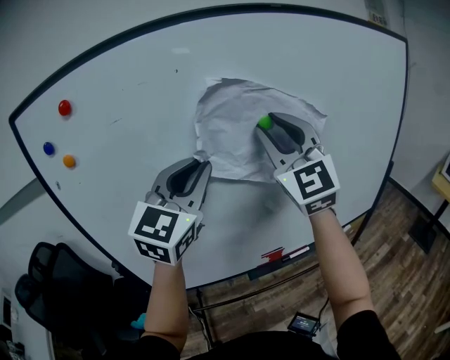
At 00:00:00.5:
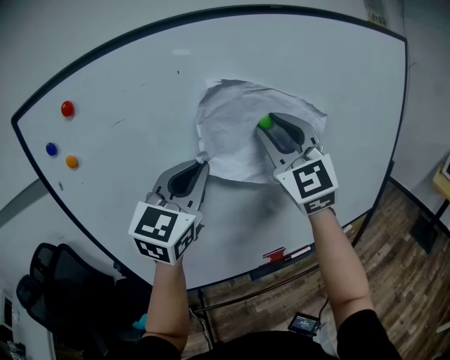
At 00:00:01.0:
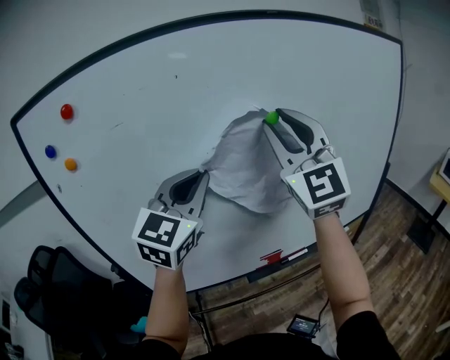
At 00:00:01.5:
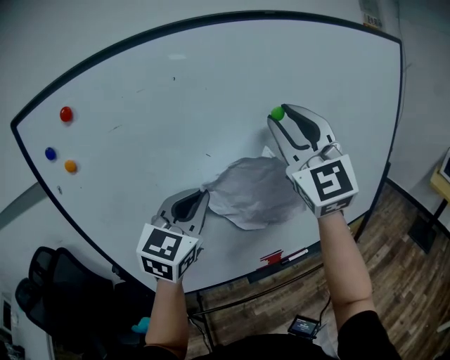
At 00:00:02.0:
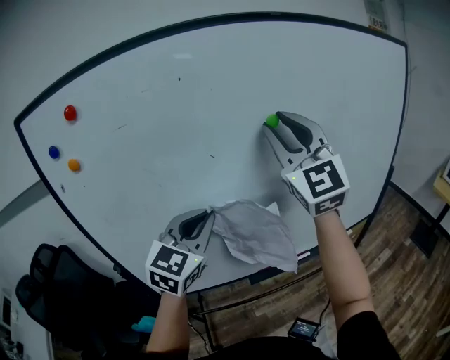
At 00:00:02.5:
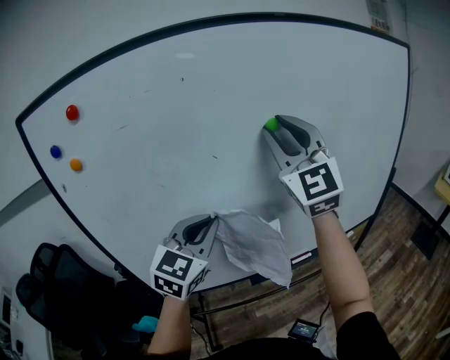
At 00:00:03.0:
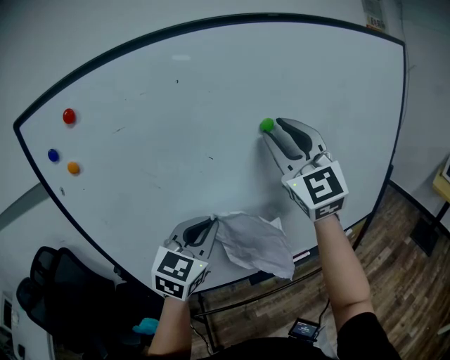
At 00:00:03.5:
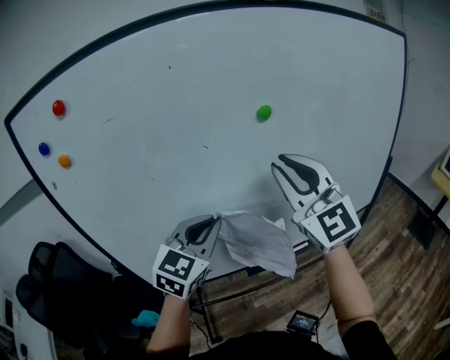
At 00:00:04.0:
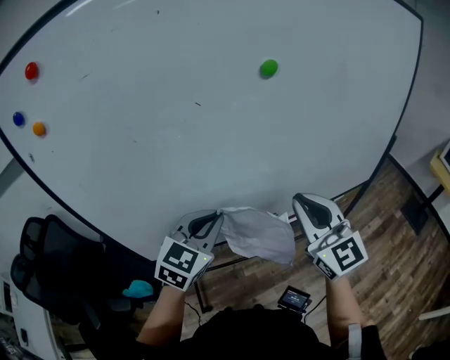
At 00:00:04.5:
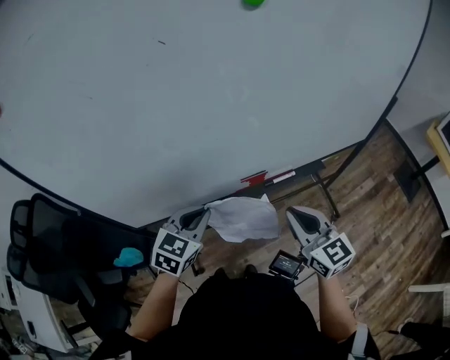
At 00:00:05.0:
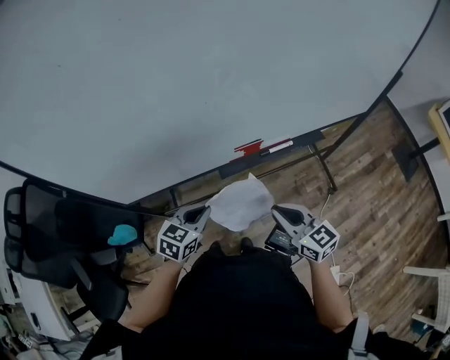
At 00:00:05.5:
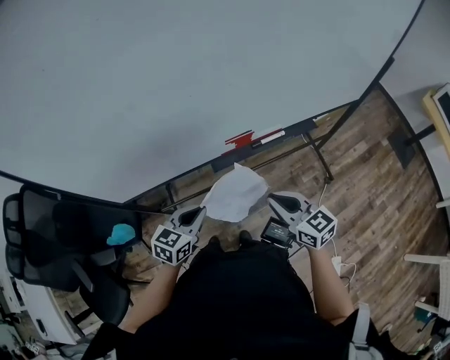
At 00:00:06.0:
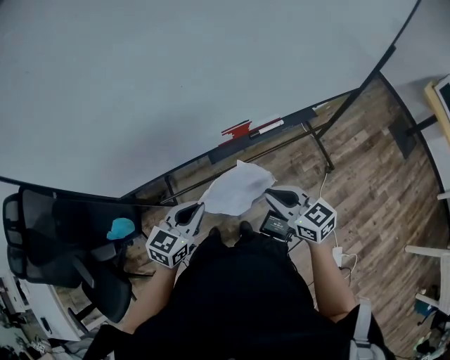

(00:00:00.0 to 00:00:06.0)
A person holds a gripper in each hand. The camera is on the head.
00:00:00.0 - 00:00:02.0: The left gripper is displaced downward by roughly 10 cm.
00:00:02.0 - 00:00:04.0: The right gripper travels downward by about 25 cm, rotates approximately 30 degrees, and closes; the left gripper travels downward by roughly 15 cm.
00:00:04.0 - 00:00:06.0: The grippers both shift downward by roughly 30 cm. The right gripper rotates approximately 40 degrees, while the left gripper rotates roughly 30 degrees.

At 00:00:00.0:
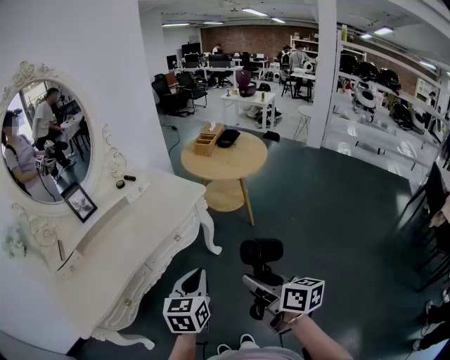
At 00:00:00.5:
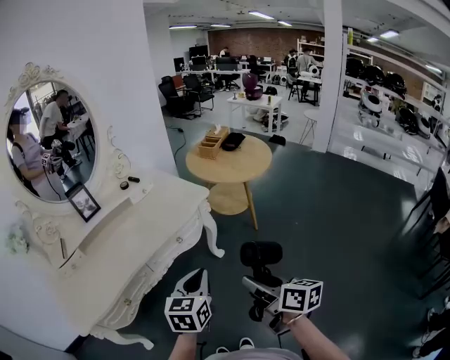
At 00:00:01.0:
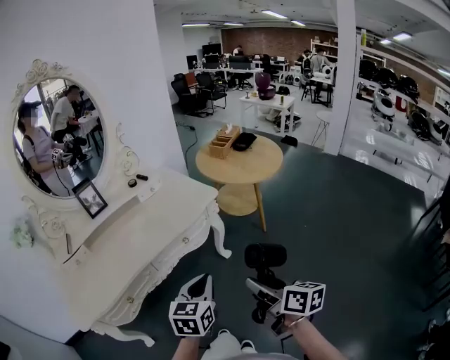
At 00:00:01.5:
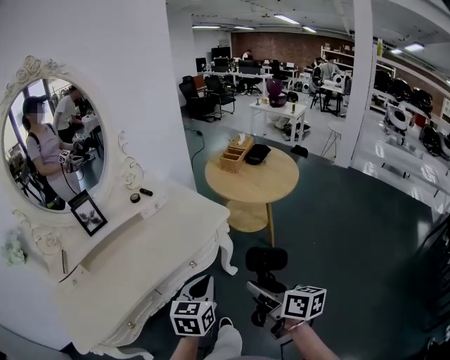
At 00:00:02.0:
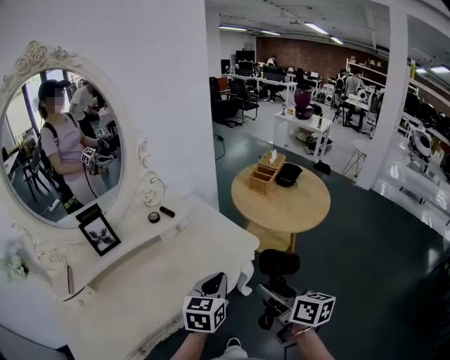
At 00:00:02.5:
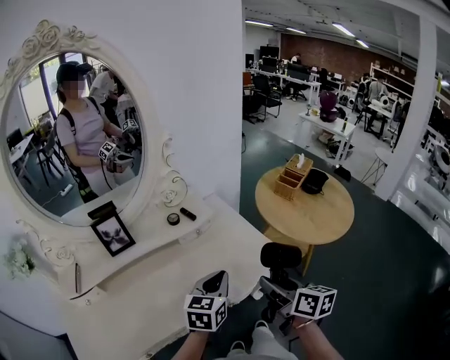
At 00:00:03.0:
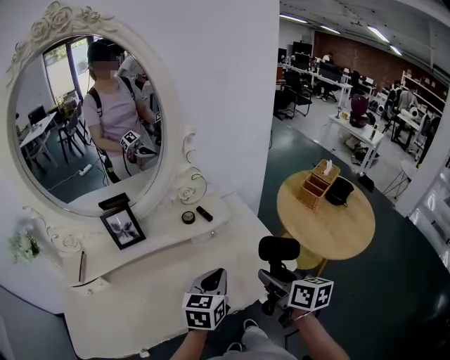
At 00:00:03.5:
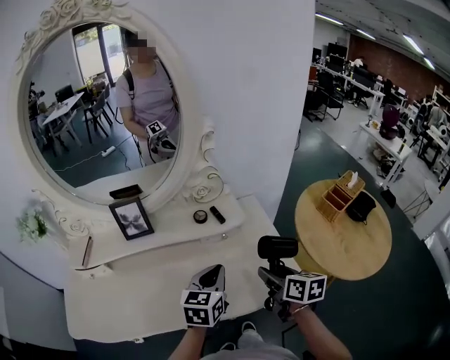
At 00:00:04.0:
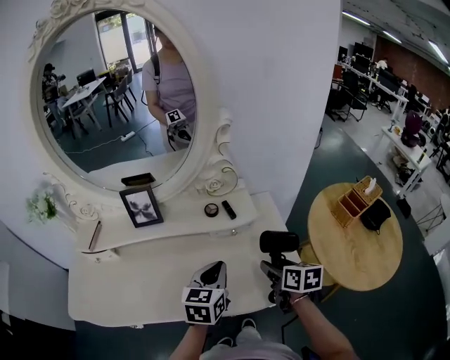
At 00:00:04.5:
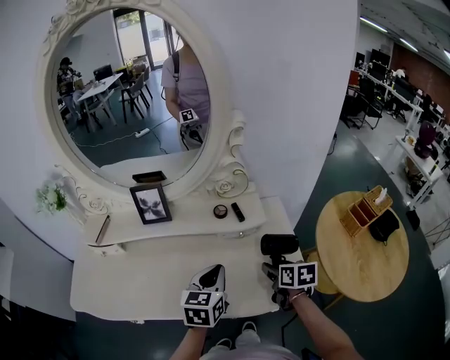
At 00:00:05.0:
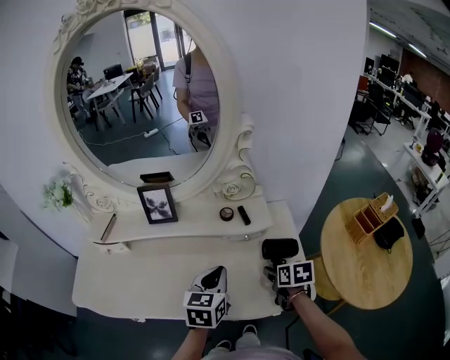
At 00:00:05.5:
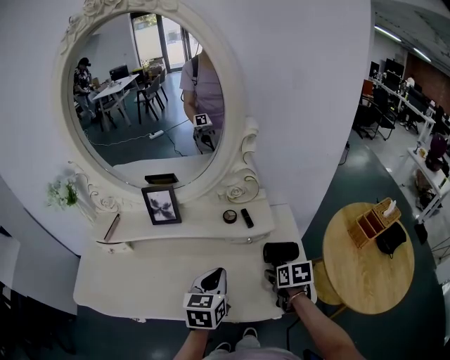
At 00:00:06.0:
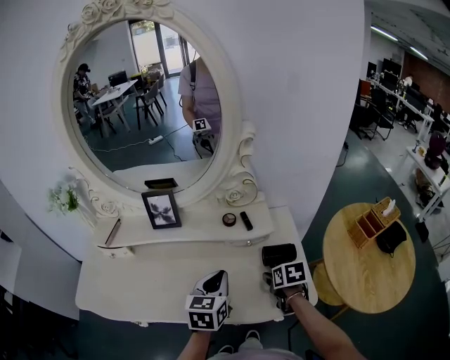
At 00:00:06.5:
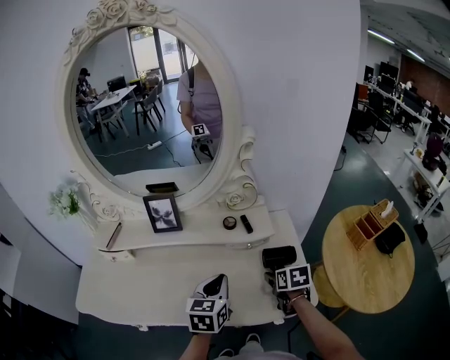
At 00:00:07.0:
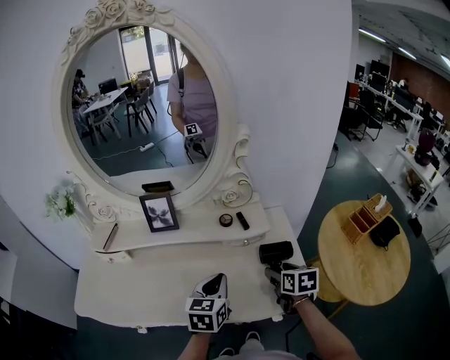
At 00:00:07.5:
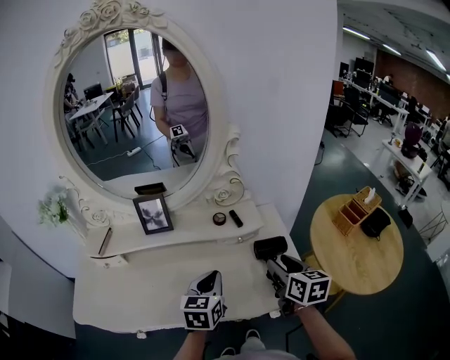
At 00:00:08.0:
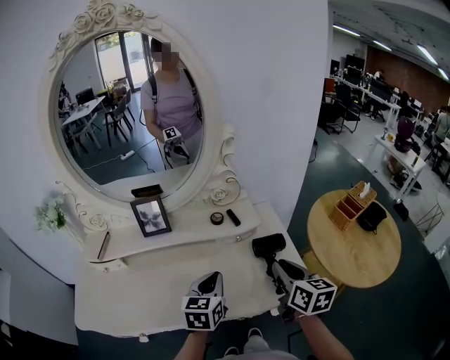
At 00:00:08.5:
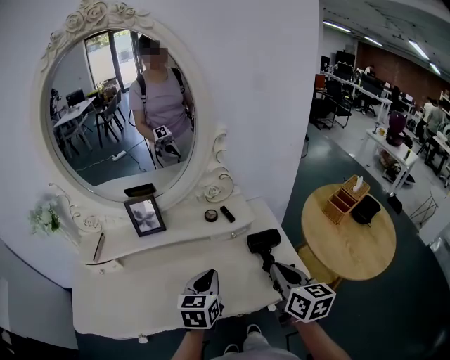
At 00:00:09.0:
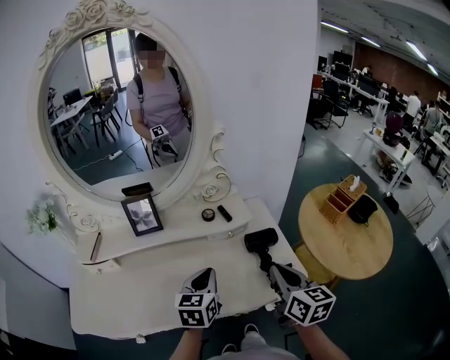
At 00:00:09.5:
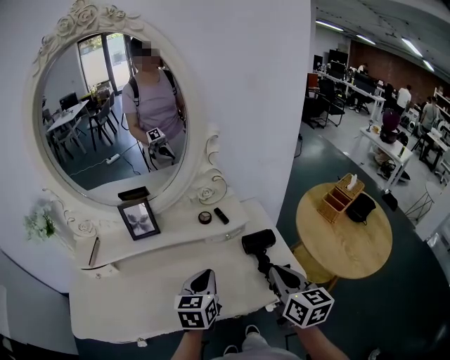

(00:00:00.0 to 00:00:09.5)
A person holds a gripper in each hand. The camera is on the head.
00:00:00.0 - 00:00:02.0: Both grippers travel together forward, about 30 cm.
00:00:02.0 - 00:00:04.0: The left gripper changes place by approximately 20 cm, and changes its angle by roughly 40 degrees; the right gripper shifts by approximately 30 cm, and swivels roughly 40 degrees.
00:00:04.0 - 00:00:05.5: The right gripper shifts approximately 5 cm downward.
00:00:05.5 - 00:00:07.5: The right gripper heads upward, covering roughly 15 cm, and swivels some 30 degrees.
00:00:07.5 - 00:00:09.5: The right gripper is displaced backward by some 5 cm, and closes up.

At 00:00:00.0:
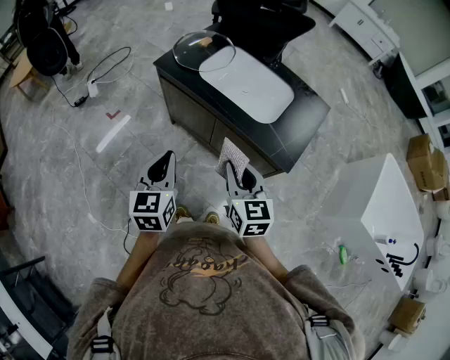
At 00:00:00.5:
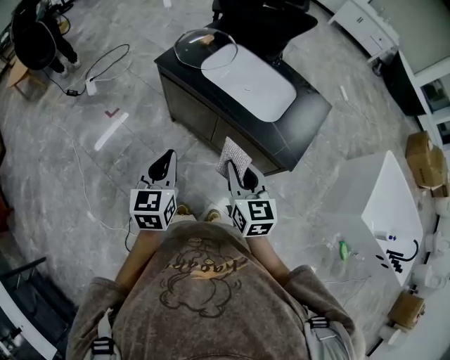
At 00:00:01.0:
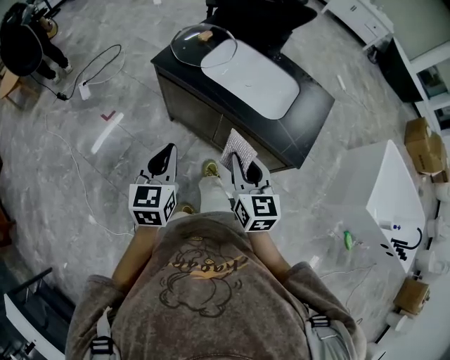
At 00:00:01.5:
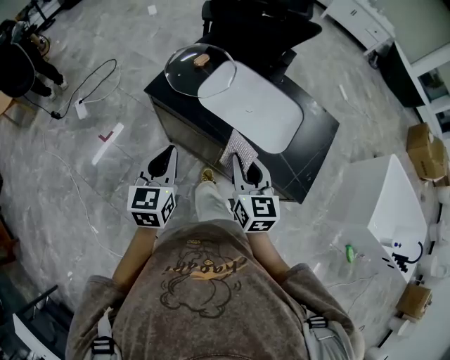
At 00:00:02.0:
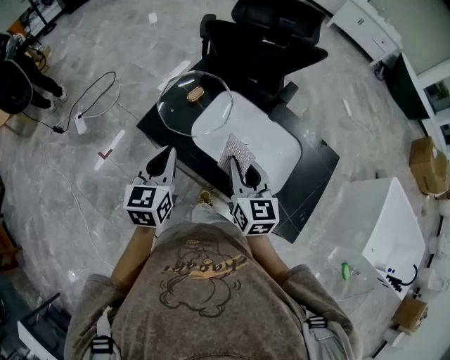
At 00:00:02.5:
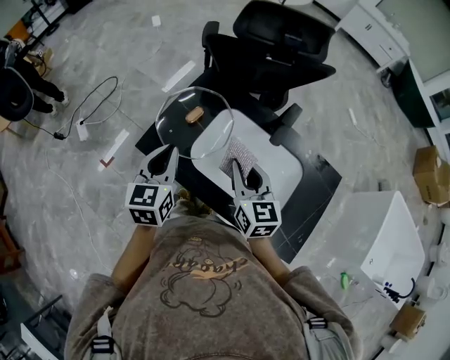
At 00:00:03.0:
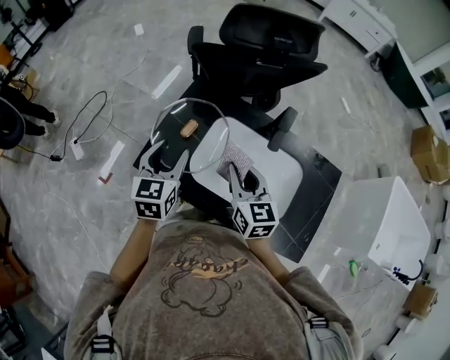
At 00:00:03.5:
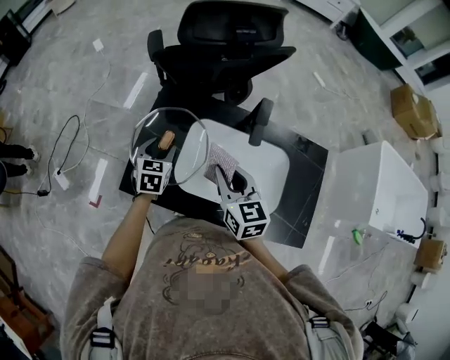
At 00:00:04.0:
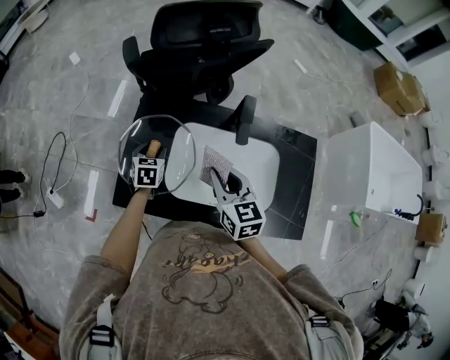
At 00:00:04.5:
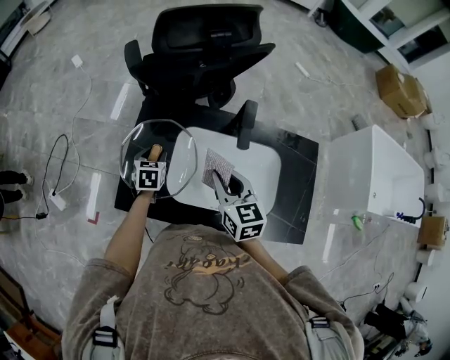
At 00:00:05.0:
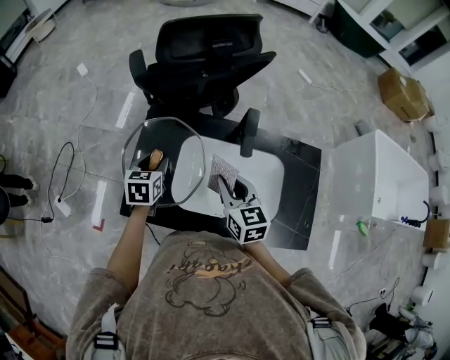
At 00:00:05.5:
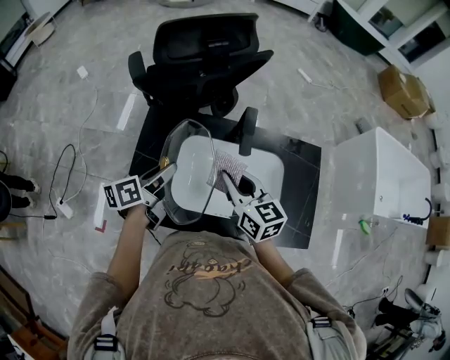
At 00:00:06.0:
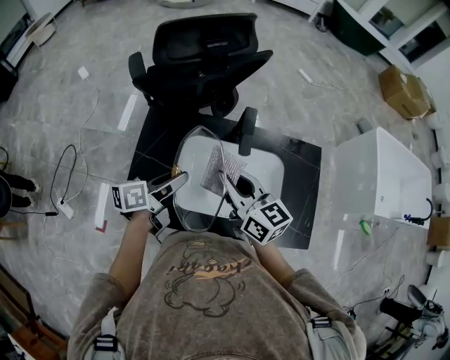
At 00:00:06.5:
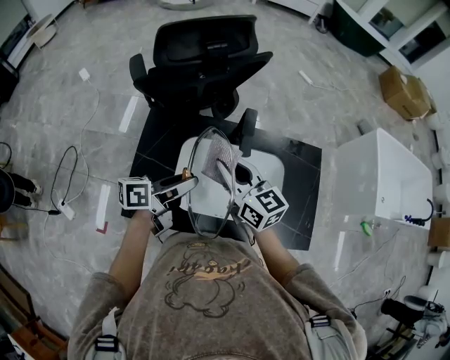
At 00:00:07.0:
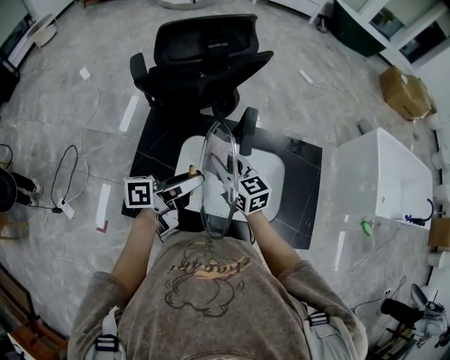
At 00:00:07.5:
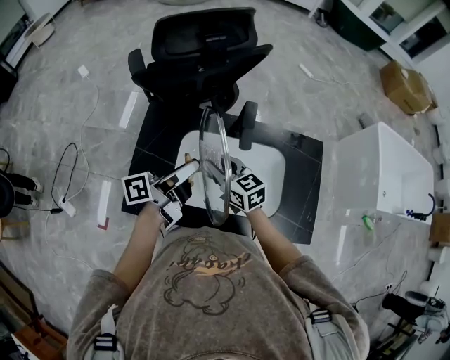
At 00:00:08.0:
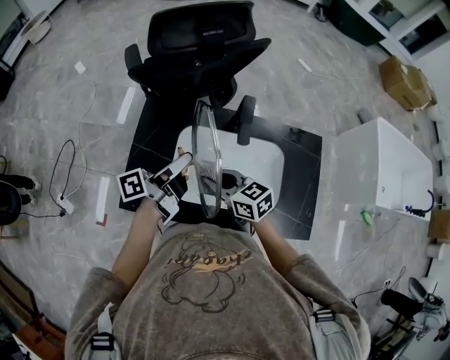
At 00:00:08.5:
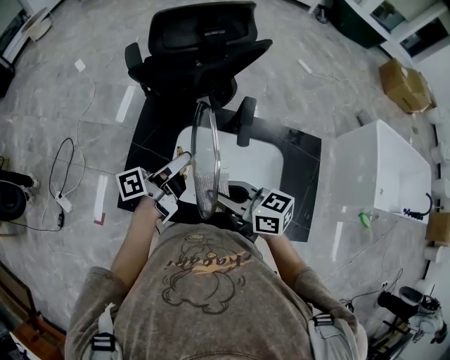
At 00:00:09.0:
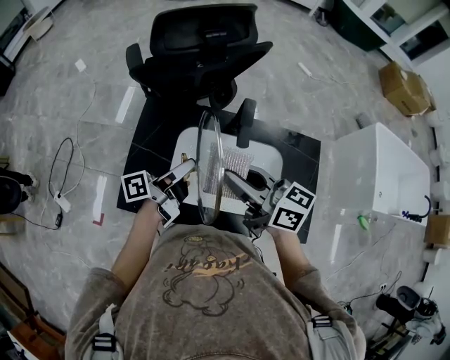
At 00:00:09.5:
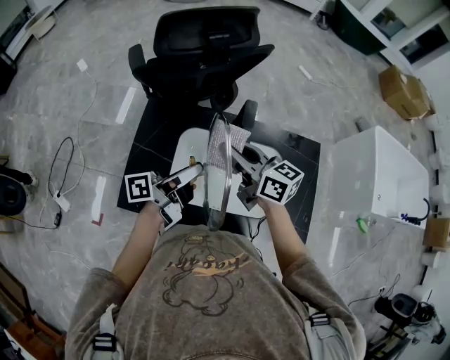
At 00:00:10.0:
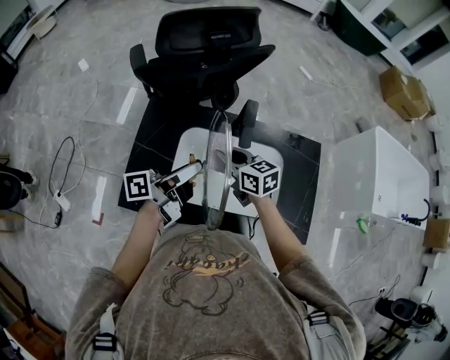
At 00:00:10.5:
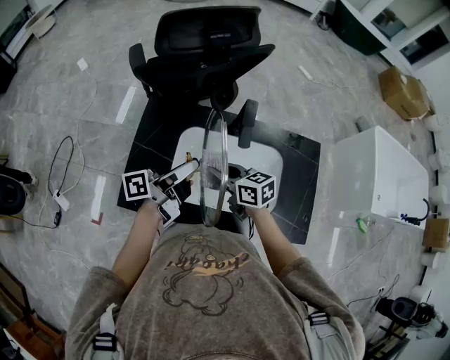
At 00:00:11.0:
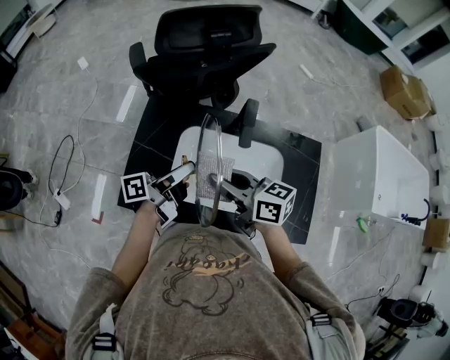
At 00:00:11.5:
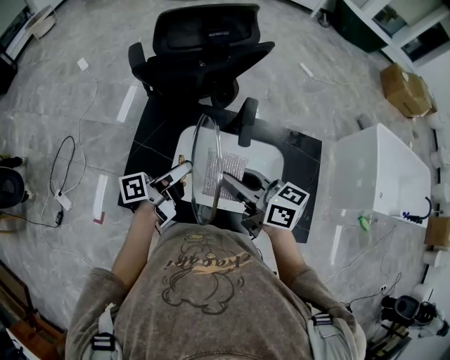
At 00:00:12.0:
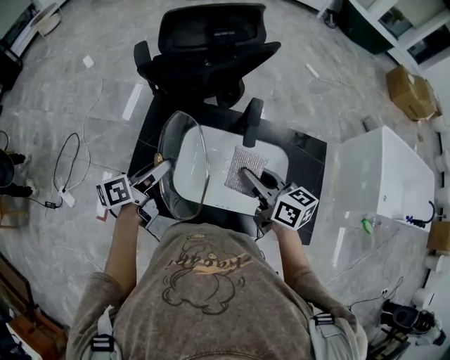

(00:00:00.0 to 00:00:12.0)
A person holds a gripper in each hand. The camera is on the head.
00:00:00.0 - 00:00:02.0: The two grippers go about 35 cm forward.
00:00:02.0 - 00:00:04.0: The right gripper travels forward by roughly 15 cm. The left gripper travels forward and downward by about 35 cm, swivels about 40 degrees, and opens.
00:00:04.0 - 00:00:06.0: The left gripper heads upward, to the right and backward, covering roughly 20 cm, and tips its fingers upward by approximately 30 degrees, while the right gripper is displaced upward by about 5 cm, and changes its angle by roughly 20 degrees.
00:00:06.0 - 00:00:08.0: The left gripper swivels approximately 30 degrees. The right gripper moves downward, roughly 10 cm, and changes its angle by roughly 30 degrees.
00:00:08.0 - 00:00:10.0: The right gripper shifts some 10 cm forward, and reaches about 15 cm upward, then returns.
00:00:10.0 - 00:00:12.0: The left gripper goes about 10 cm to the left, and changes its angle by about 30 degrees. The right gripper travels upward, backward and to the right by approximately 10 cm.
